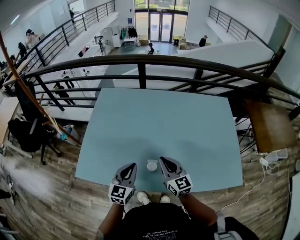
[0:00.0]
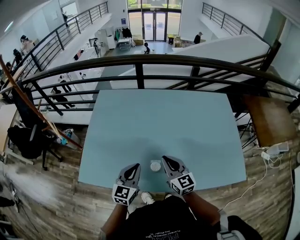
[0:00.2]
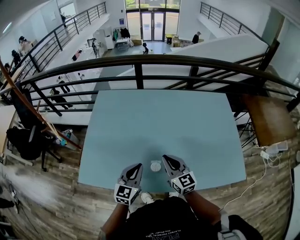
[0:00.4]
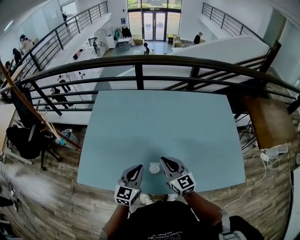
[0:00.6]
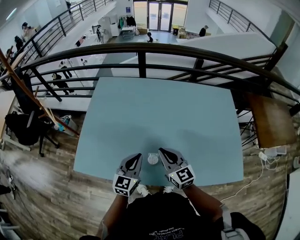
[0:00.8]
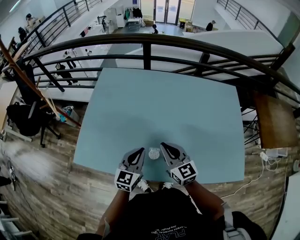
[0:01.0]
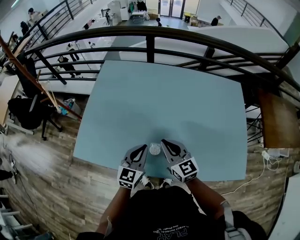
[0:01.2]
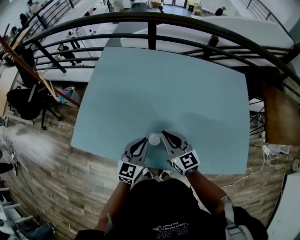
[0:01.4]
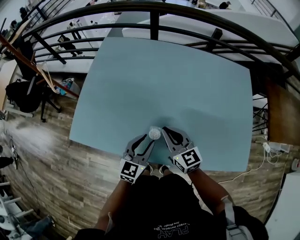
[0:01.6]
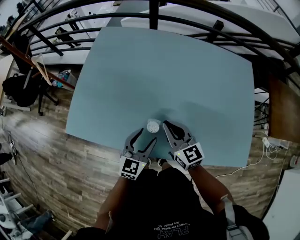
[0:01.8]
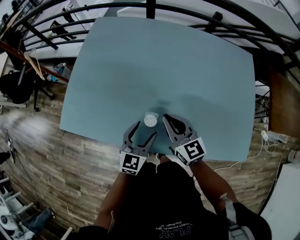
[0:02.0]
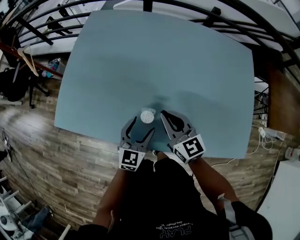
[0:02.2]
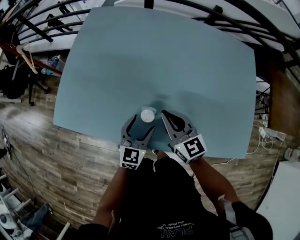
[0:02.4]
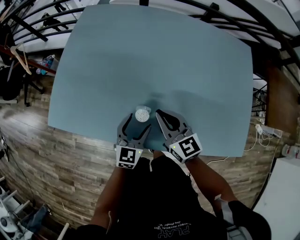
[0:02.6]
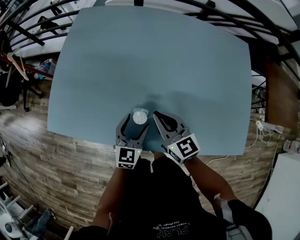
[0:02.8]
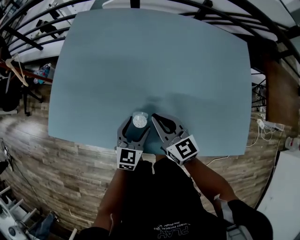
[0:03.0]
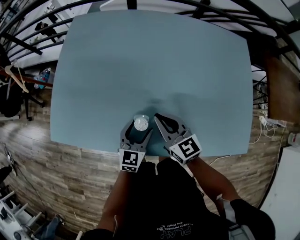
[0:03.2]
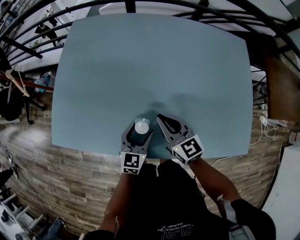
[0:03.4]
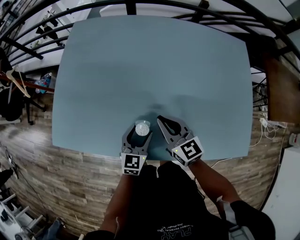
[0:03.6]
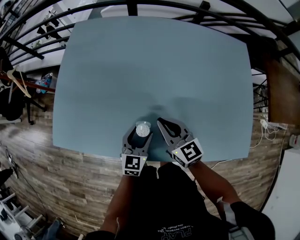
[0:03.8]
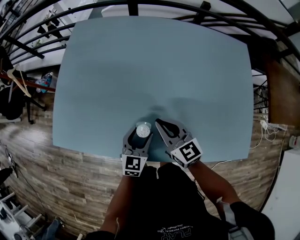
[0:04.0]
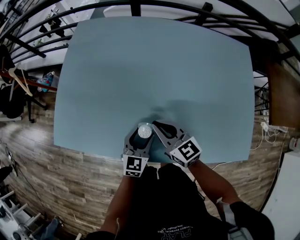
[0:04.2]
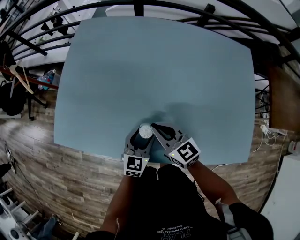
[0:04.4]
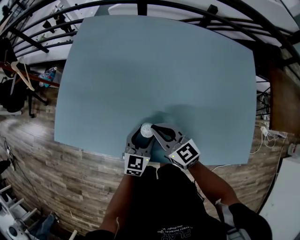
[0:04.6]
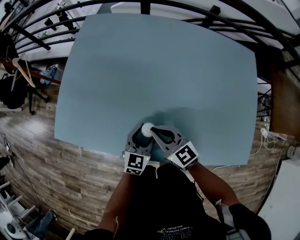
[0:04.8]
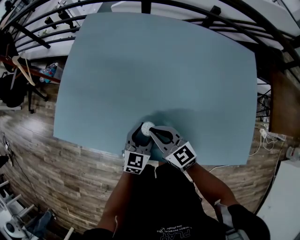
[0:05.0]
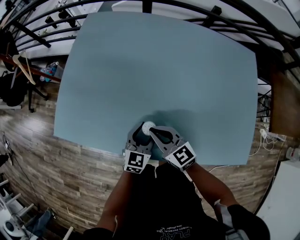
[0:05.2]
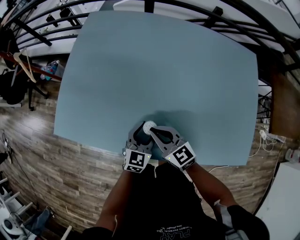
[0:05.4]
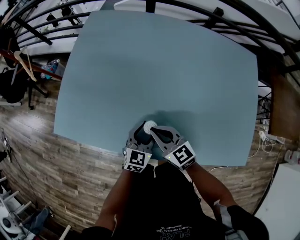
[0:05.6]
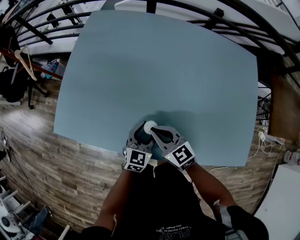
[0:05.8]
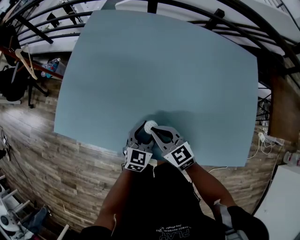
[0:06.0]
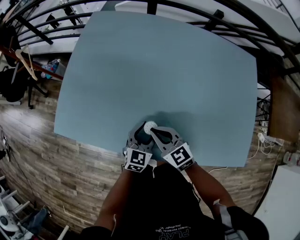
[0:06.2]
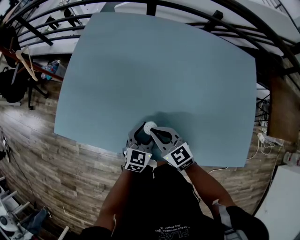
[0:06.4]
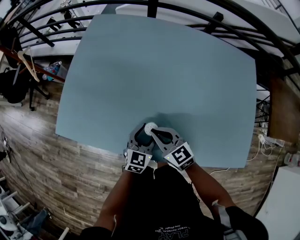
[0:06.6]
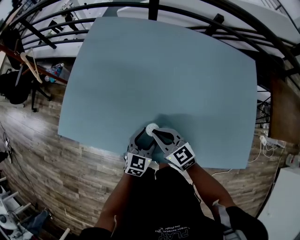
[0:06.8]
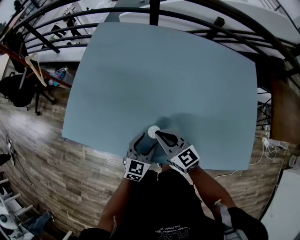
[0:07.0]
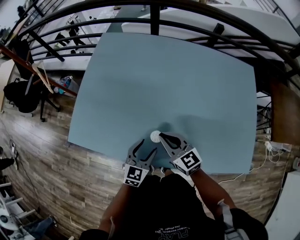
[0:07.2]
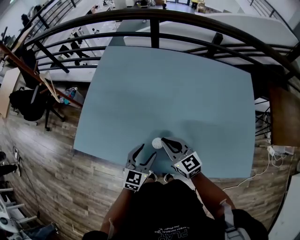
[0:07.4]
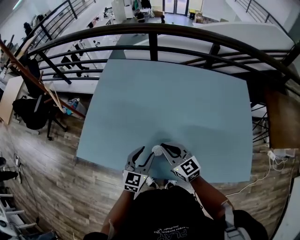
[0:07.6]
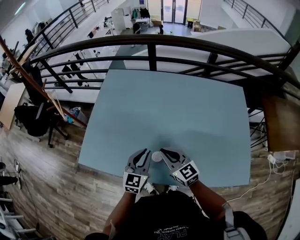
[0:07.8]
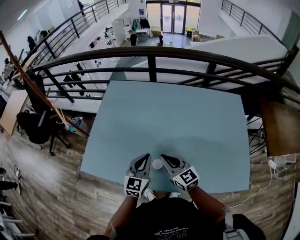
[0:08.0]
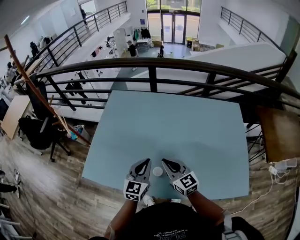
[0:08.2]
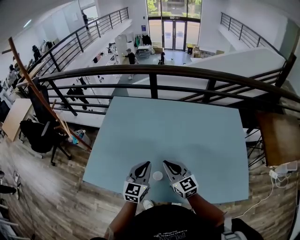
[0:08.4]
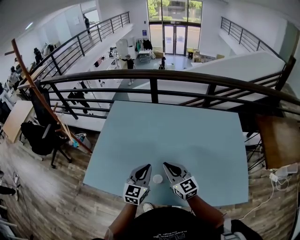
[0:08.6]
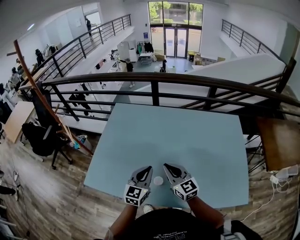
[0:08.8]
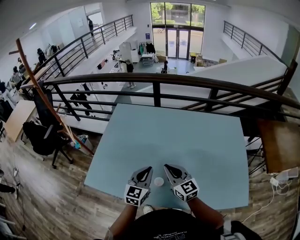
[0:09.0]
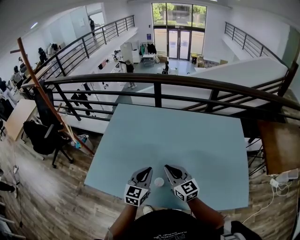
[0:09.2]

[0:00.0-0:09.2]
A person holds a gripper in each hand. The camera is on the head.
0:00.0 to 0:01.6: The left gripper travels to the right and downward by some 10 cm, and opens; the right gripper changes place by roughly 5 cm.
0:01.6 to 0:03.0: The right gripper is displaced downward by some 5 cm. Meanwhile the left gripper travels downward by some 10 cm, and opens its fingers.
0:03.0 to 0:04.6: The grippers stay close to where they were, moving slightly.
0:04.6 to 0:06.2: The grippers make only small movements.
0:06.2 to 0:07.6: The left gripper heads upward and to the left, covering about 15 cm. Meanwhile the right gripper moves upward, some 10 cm.
0:07.6 to 0:09.2: The grippers both shift upward by about 10 cm. The left gripper closes its fingers.

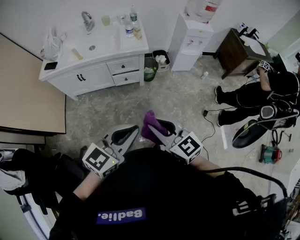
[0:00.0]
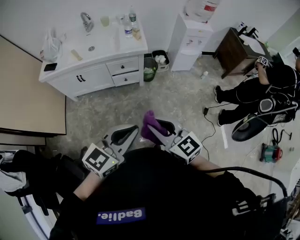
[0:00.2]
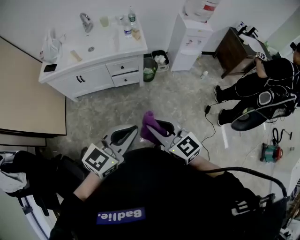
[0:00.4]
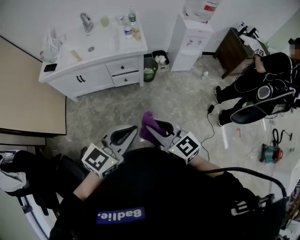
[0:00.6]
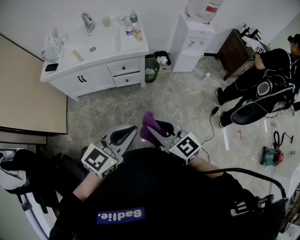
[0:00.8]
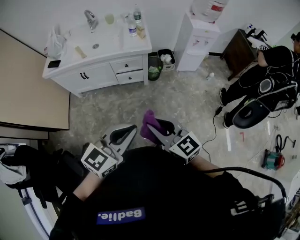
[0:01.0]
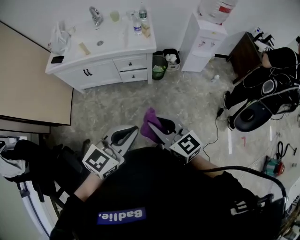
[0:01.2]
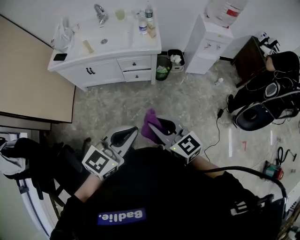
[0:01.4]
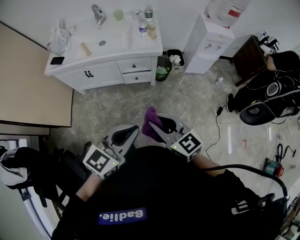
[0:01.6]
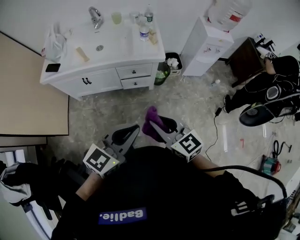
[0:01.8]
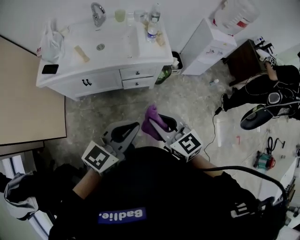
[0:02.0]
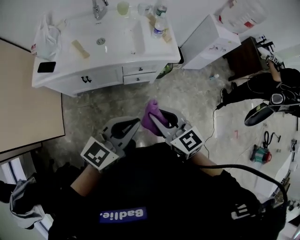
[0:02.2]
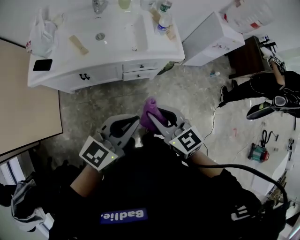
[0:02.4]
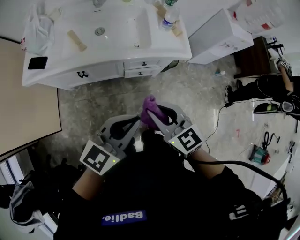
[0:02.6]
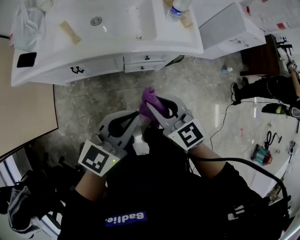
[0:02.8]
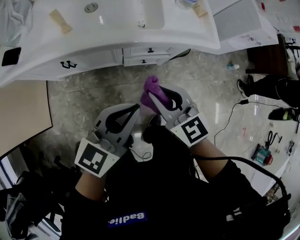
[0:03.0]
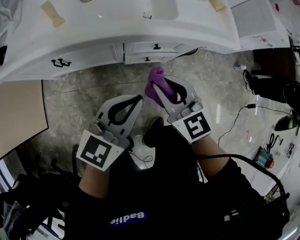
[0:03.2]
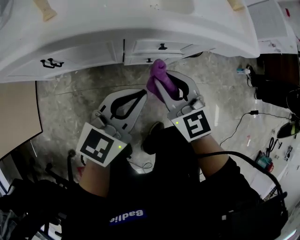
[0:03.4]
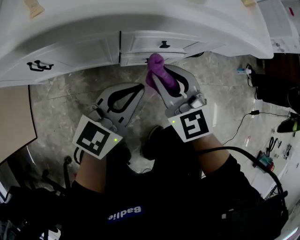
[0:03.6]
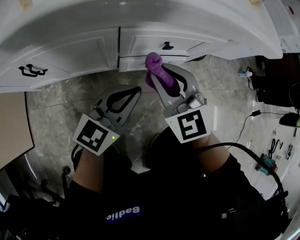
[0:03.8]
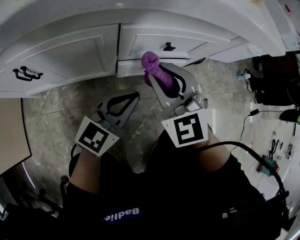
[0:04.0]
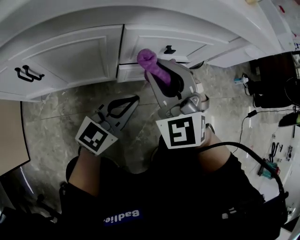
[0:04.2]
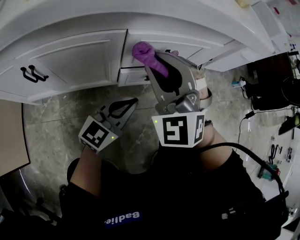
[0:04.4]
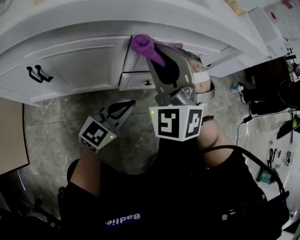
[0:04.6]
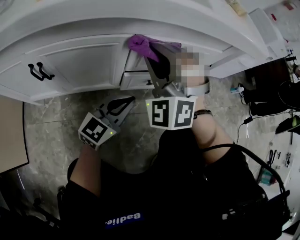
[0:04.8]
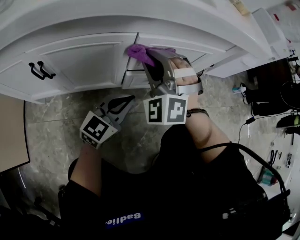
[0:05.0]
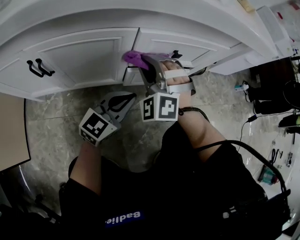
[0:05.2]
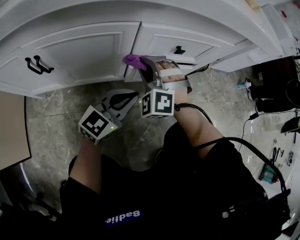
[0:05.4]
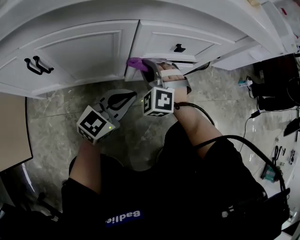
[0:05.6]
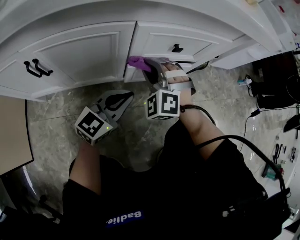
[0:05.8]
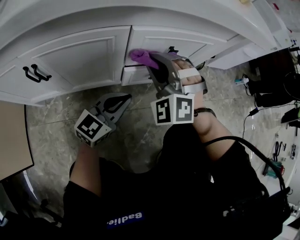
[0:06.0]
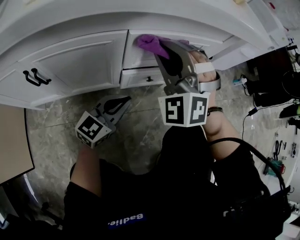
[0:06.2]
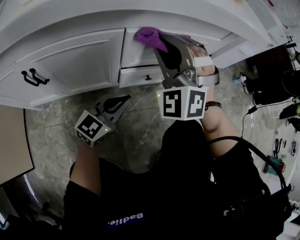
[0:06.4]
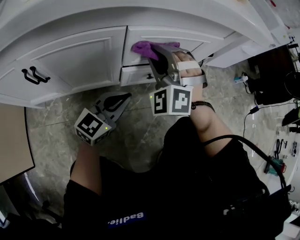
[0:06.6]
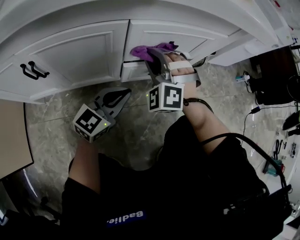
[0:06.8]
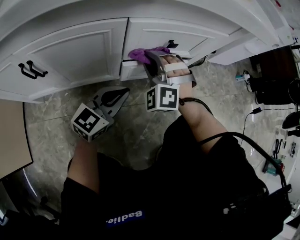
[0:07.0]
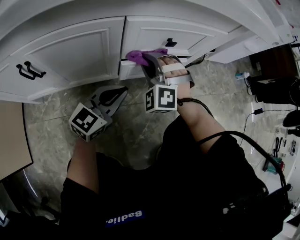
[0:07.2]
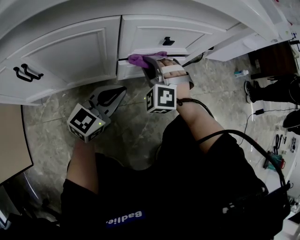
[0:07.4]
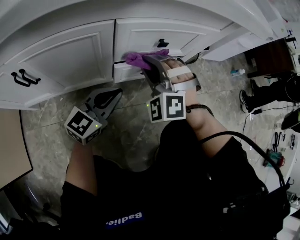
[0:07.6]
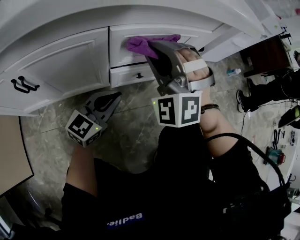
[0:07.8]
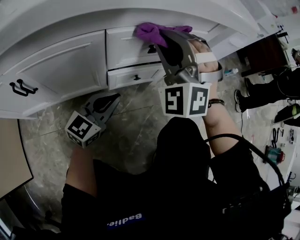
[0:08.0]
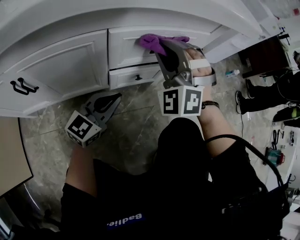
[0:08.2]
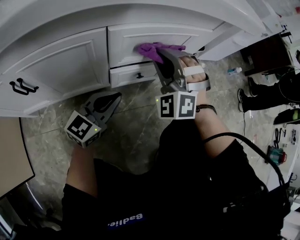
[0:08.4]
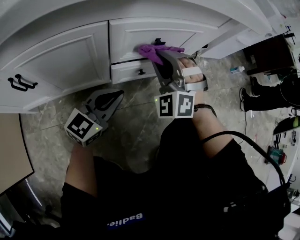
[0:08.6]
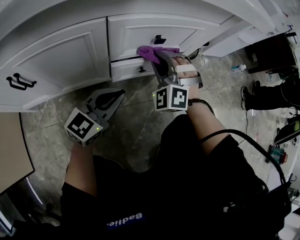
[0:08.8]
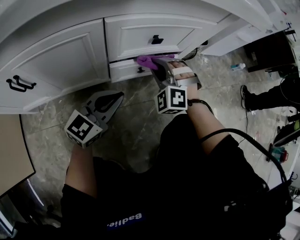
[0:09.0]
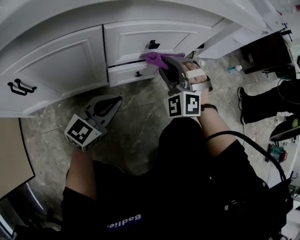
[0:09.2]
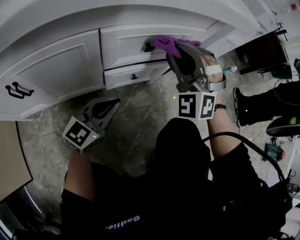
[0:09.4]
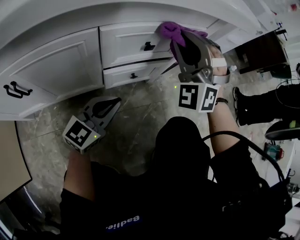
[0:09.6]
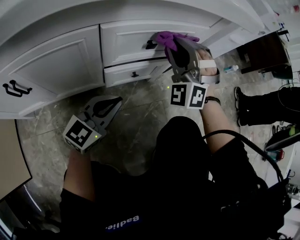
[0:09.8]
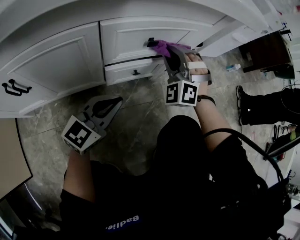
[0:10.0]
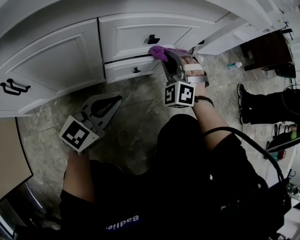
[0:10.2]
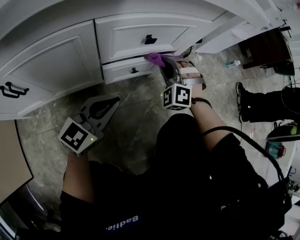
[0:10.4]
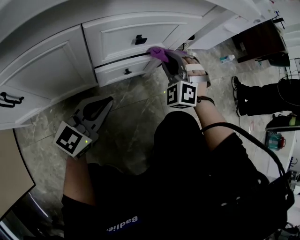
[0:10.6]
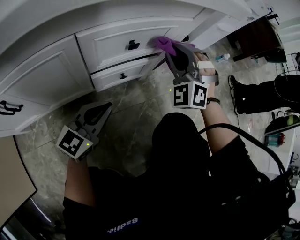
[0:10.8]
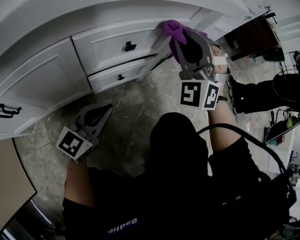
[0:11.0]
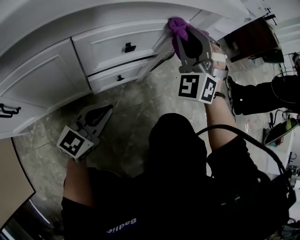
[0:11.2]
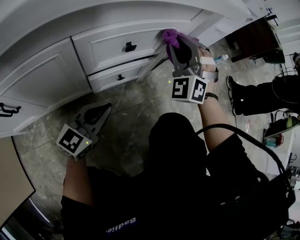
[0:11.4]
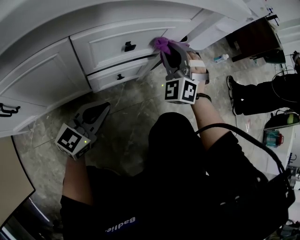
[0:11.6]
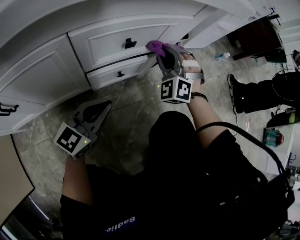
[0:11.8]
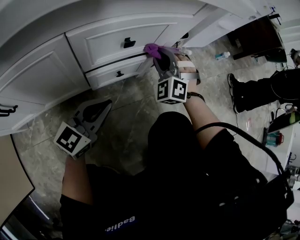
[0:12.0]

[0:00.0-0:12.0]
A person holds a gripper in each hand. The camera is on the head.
0:00.0 to 0:01.6: Both grippers move forward, roughly 10 cm.
0:01.6 to 0:03.0: The grippers both shift forward, downward and to the left by some 50 cm.
0:03.0 to 0:04.4: The right gripper is displaced downward and forward by some 25 cm, and rotates around the line of its fingers by roughly 50 degrees, counterclockwise from behind, while the left gripper travels downward by approximately 35 cm.
0:04.4 to 0:06.0: The right gripper travels downward by about 10 cm.
0:06.0 to 0:07.6: The right gripper goes up and down, roughly 20 cm each way, reversing 2 times.
0:07.6 to 0:09.0: The right gripper heads to the right, covering some 5 cm, and travels upward and back again, about 15 cm each way.
0:09.0 to 0:10.4: The right gripper shifts approximately 5 cm to the right, and moves about 20 cm upward and comes back.
0:10.4 to 0:12.0: The right gripper goes upward and returns, roughly 20 cm each way.

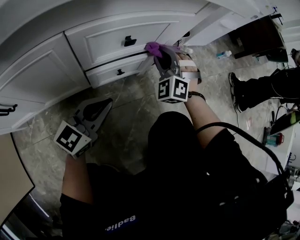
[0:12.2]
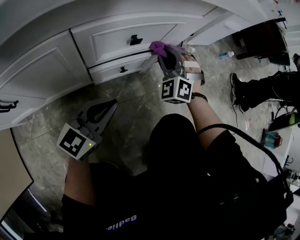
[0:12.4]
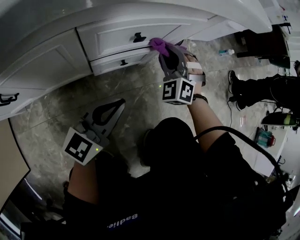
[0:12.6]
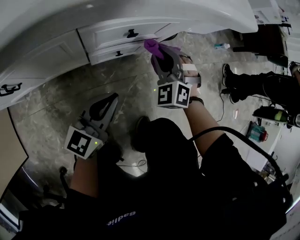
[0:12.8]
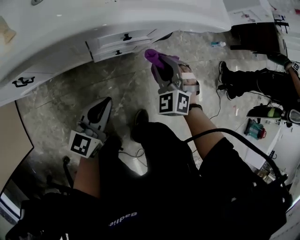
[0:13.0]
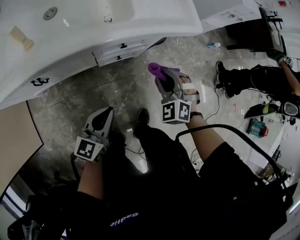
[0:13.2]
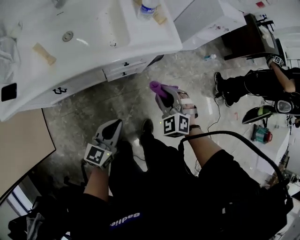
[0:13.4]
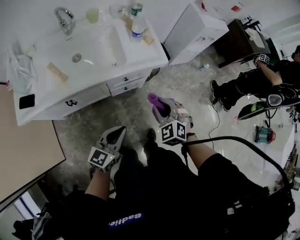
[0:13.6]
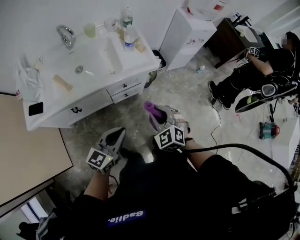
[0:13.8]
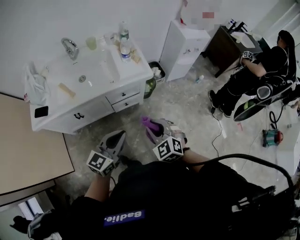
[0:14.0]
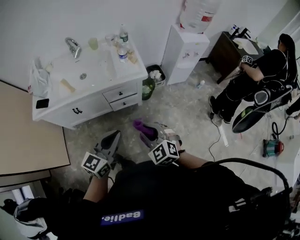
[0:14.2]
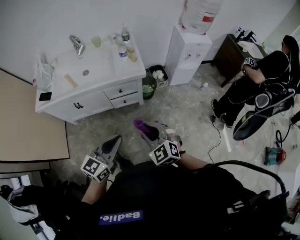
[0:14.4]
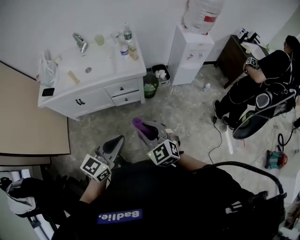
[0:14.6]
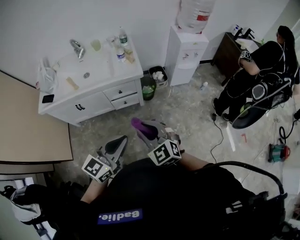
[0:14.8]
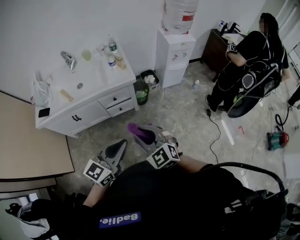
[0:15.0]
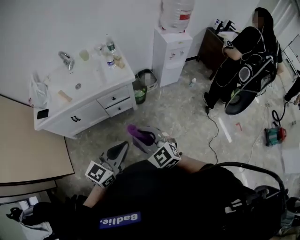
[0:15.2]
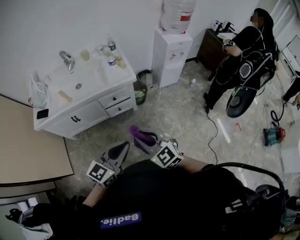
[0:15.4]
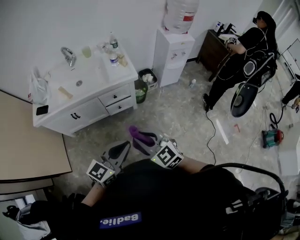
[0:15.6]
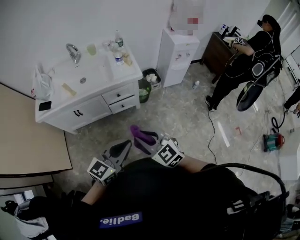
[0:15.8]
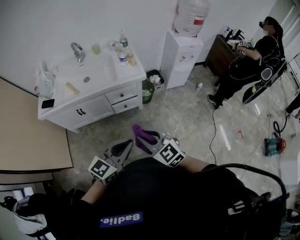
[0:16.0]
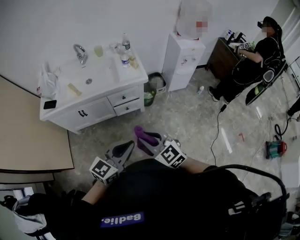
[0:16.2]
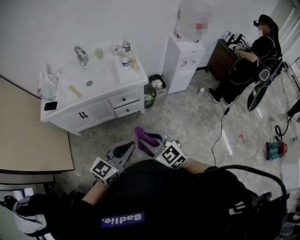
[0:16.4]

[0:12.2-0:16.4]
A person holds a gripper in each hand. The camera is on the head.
0:12.2 to 0:13.6: The right gripper is displaced upward and backward by some 50 cm, and swivels approximately 30 degrees. The left gripper is displaced upward by approximately 50 cm.
0:13.6 to 0:15.0: The right gripper moves backward, upward and to the right, about 35 cm, and rotates approximately 30 degrees; the left gripper travels upward, to the right and backward by about 35 cm.
0:15.0 to 0:16.4: The right gripper goes some 5 cm to the left. The left gripper moves some 5 cm.
